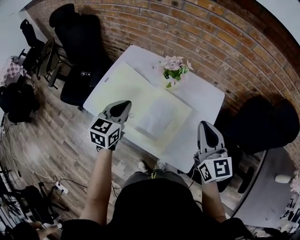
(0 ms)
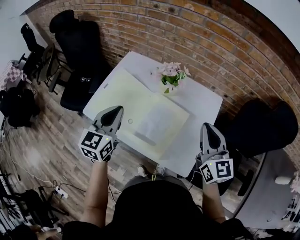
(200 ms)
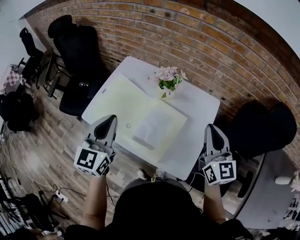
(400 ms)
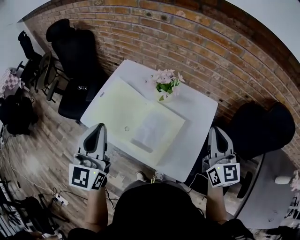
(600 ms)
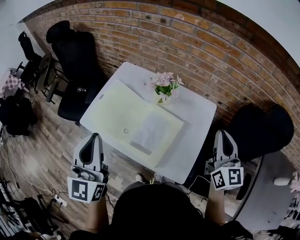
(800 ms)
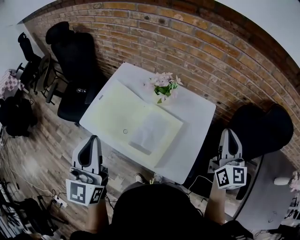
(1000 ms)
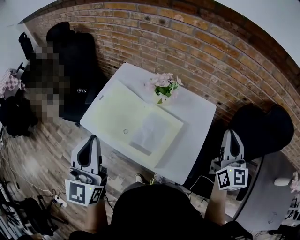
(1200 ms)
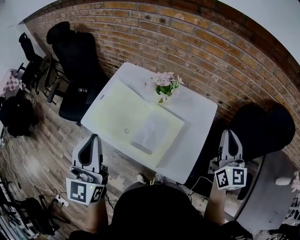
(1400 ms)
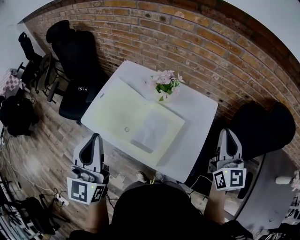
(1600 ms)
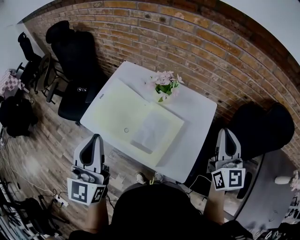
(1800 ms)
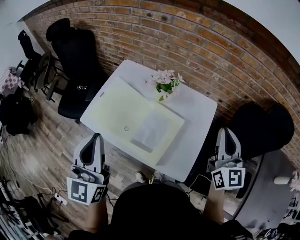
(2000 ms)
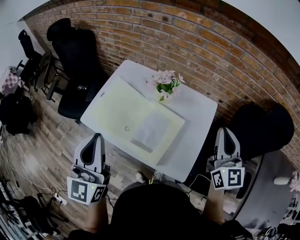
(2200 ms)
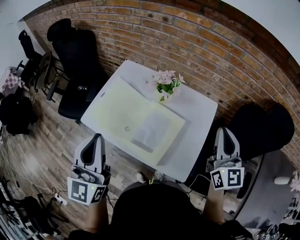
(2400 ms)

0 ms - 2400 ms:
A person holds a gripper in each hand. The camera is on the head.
0 ms - 1200 ms: The right gripper travels to the right and upward by about 15 cm. Meanwhile the left gripper goes some 20 cm upward and backward, and swivels about 30 degrees.
1200 ms - 2400 ms: The right gripper is displaced to the left by approximately 5 cm.

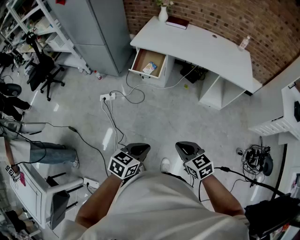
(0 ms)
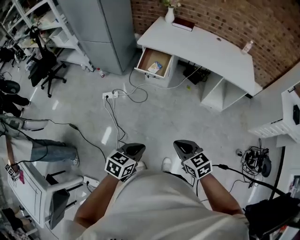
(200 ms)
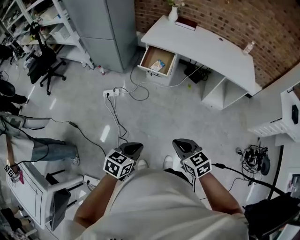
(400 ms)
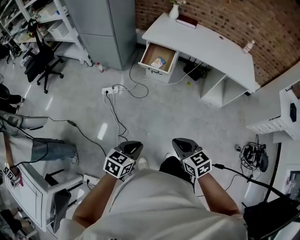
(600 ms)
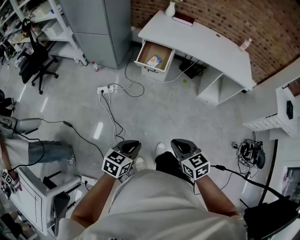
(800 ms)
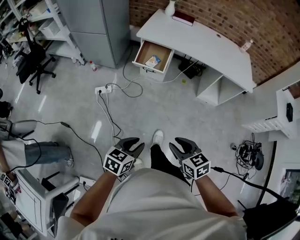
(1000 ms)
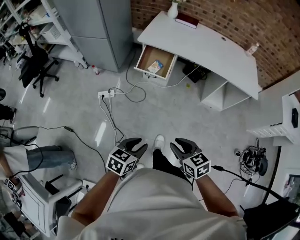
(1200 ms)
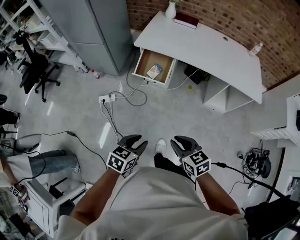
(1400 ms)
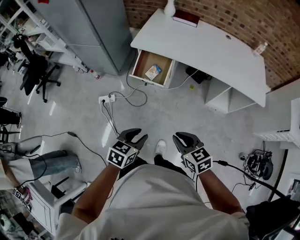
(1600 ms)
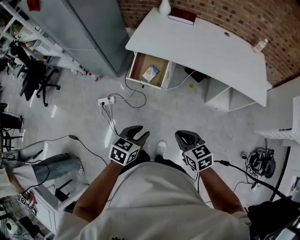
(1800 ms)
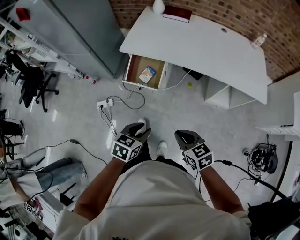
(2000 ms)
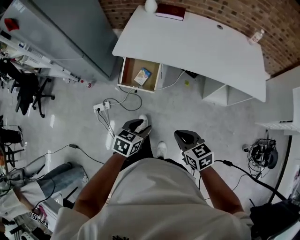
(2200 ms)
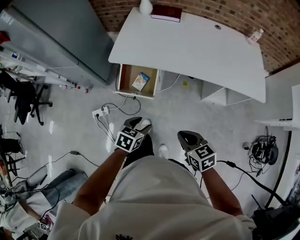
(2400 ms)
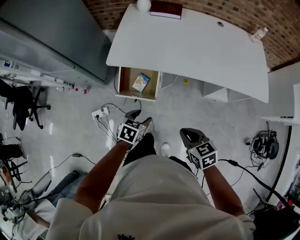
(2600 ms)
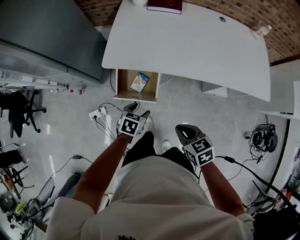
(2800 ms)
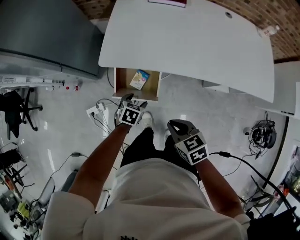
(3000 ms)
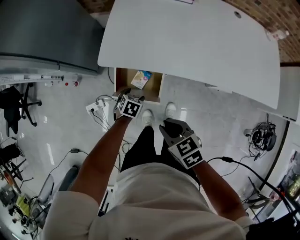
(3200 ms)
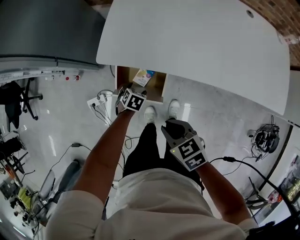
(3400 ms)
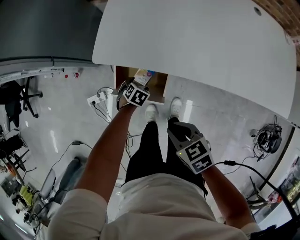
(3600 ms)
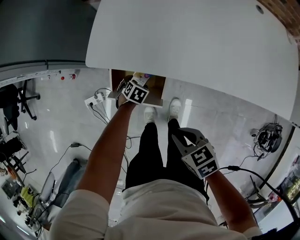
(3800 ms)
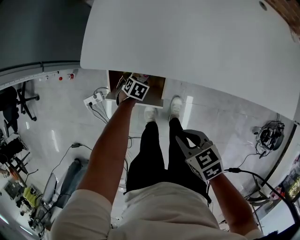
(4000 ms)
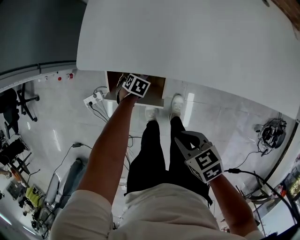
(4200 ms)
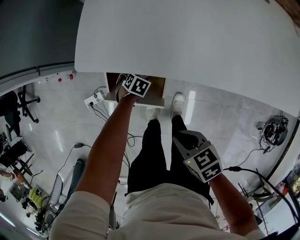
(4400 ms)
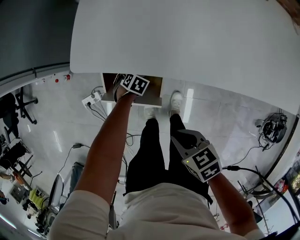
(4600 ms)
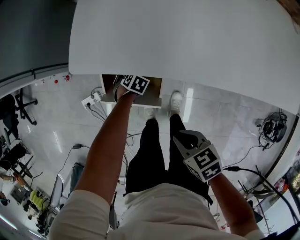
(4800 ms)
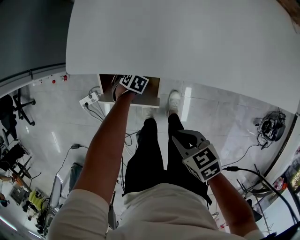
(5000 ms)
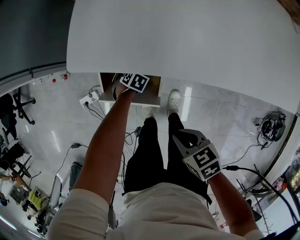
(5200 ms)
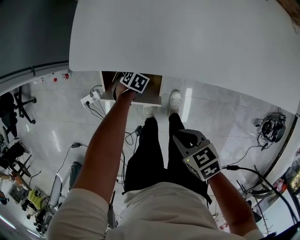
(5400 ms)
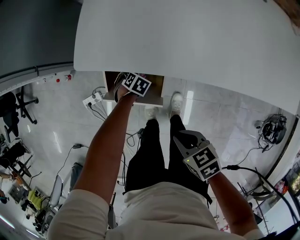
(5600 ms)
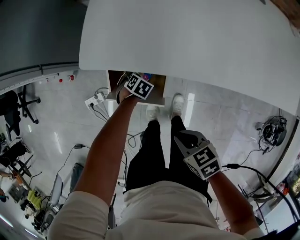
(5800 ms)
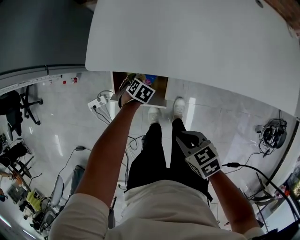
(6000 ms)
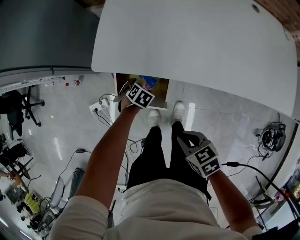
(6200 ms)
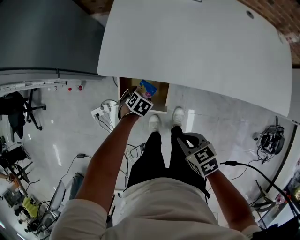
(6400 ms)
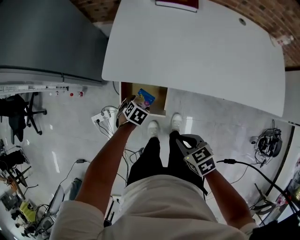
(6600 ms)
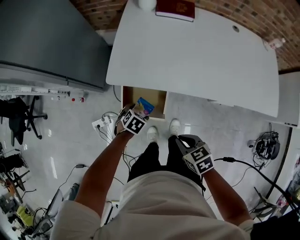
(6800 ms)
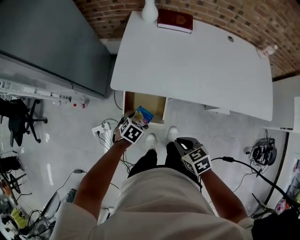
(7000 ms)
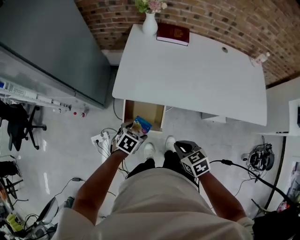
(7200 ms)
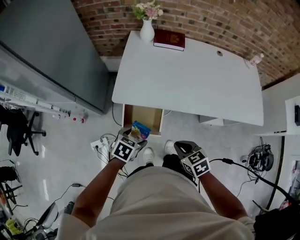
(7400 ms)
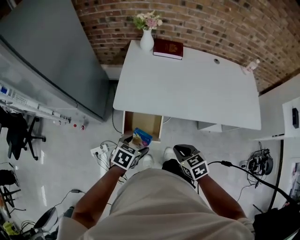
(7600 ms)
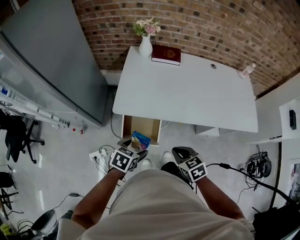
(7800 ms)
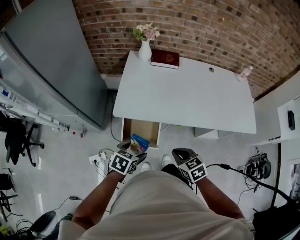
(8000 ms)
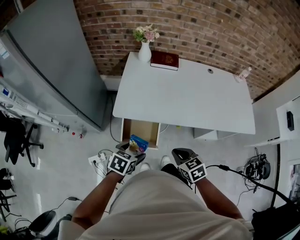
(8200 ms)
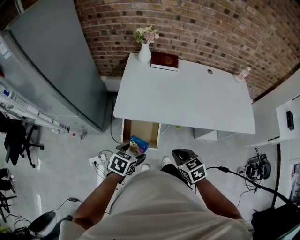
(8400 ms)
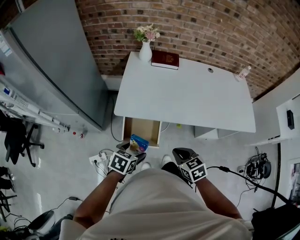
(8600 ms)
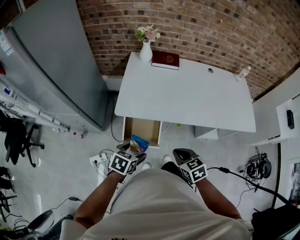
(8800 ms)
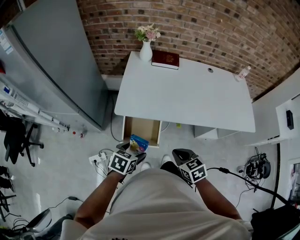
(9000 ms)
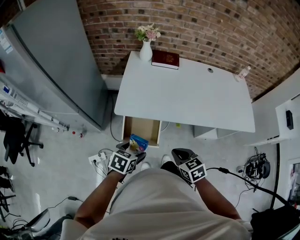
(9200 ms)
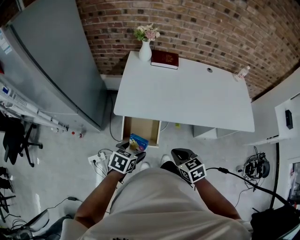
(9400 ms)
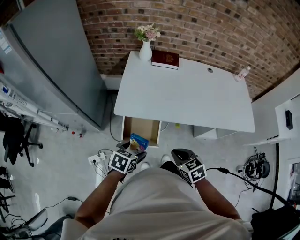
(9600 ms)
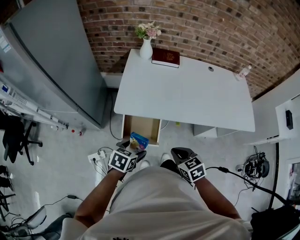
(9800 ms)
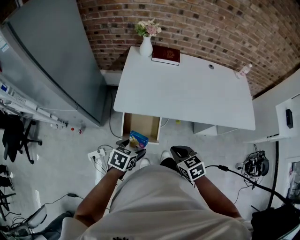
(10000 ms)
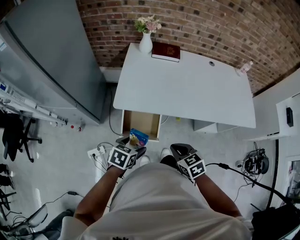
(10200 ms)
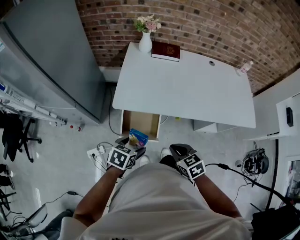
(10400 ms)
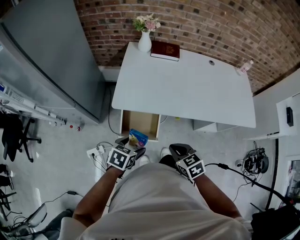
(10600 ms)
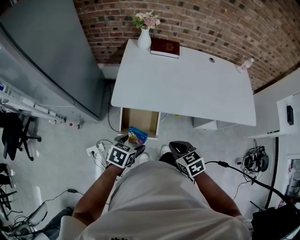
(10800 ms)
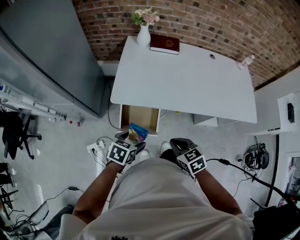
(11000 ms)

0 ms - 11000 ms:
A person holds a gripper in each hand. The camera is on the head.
0 ms - 1600 ms: The two grippers go roughly 25 cm forward.
1600 ms - 3200 ms: The right gripper heads forward, covering roughly 35 cm, while the left gripper is displaced forward and downward by some 60 cm, rotates roughly 30 degrees, and opens its fingers.
3200 ms - 4800 ms: The two grippers go roughly 15 cm downward.
4800 ms - 6200 ms: The left gripper moves upward, roughly 10 cm.
6200 ms - 7800 ms: The right gripper is displaced upward by some 20 cm, and swivels about 20 degrees, while the left gripper travels upward by about 35 cm, and changes its angle by roughly 30 degrees.
7800 ms - 11000 ms: The grippers move only a little.

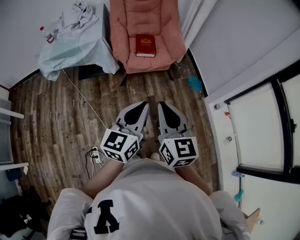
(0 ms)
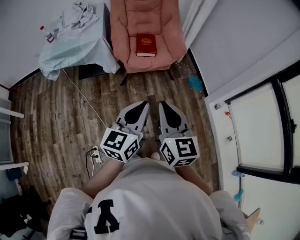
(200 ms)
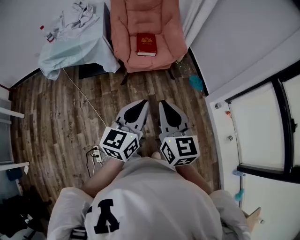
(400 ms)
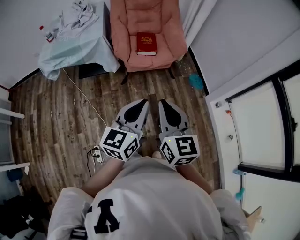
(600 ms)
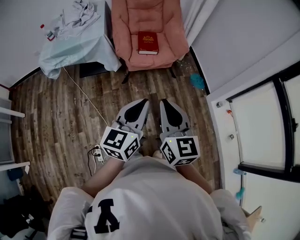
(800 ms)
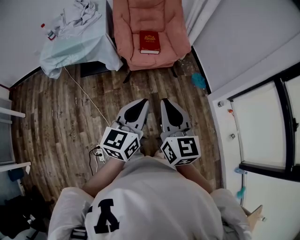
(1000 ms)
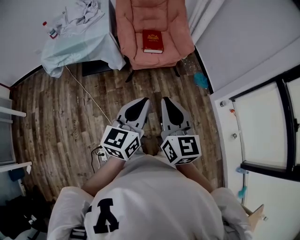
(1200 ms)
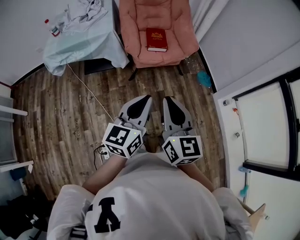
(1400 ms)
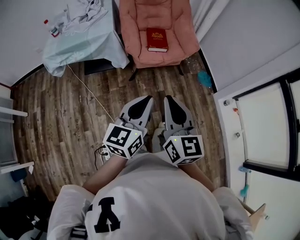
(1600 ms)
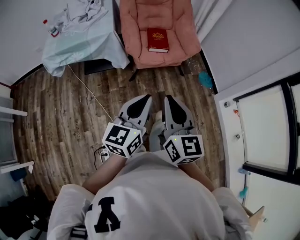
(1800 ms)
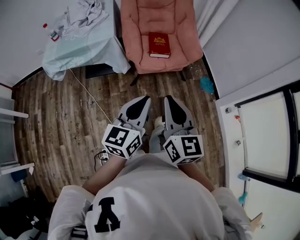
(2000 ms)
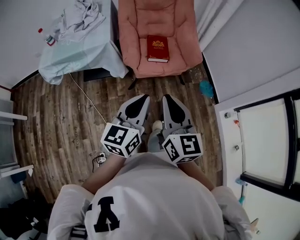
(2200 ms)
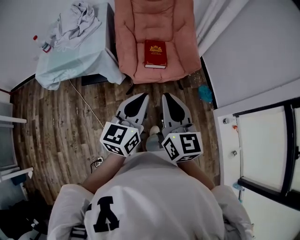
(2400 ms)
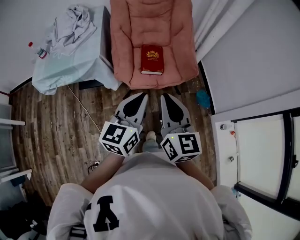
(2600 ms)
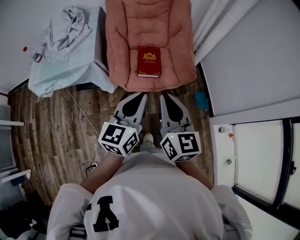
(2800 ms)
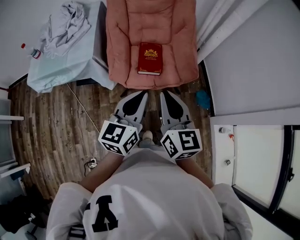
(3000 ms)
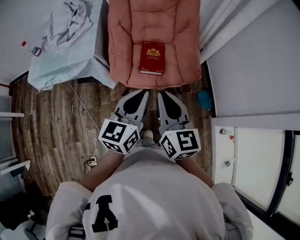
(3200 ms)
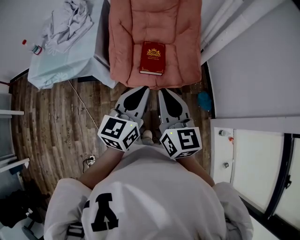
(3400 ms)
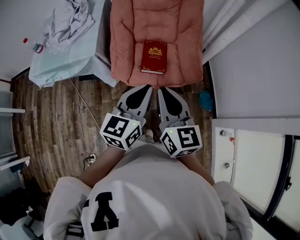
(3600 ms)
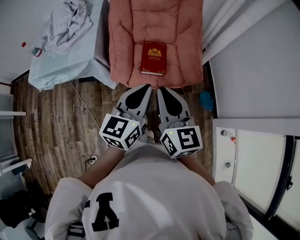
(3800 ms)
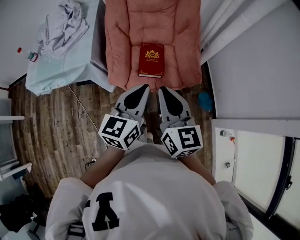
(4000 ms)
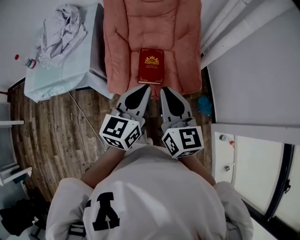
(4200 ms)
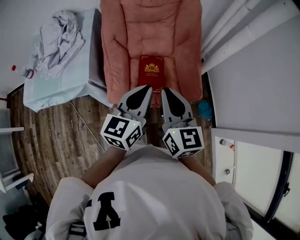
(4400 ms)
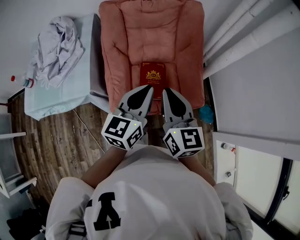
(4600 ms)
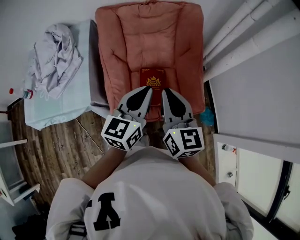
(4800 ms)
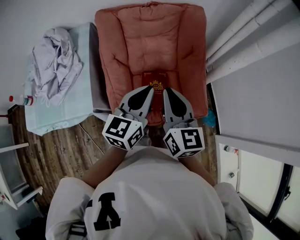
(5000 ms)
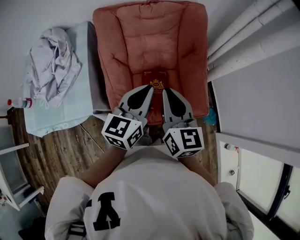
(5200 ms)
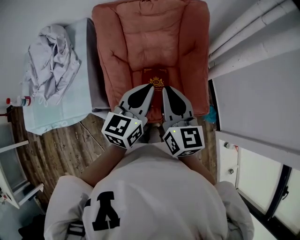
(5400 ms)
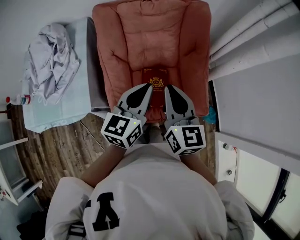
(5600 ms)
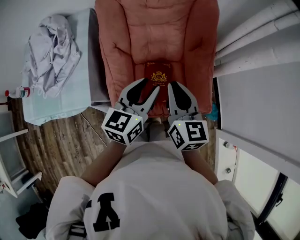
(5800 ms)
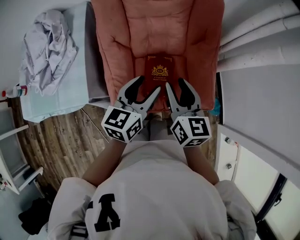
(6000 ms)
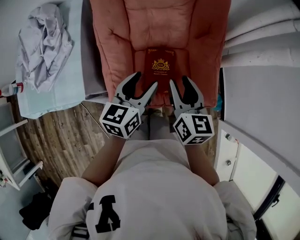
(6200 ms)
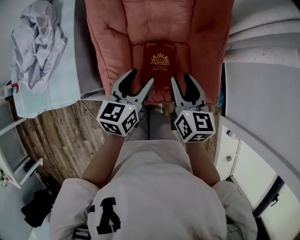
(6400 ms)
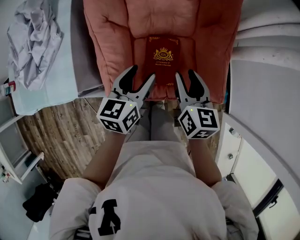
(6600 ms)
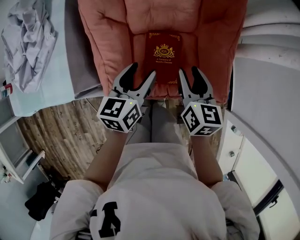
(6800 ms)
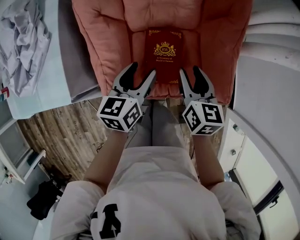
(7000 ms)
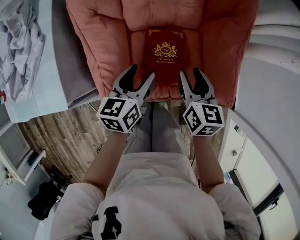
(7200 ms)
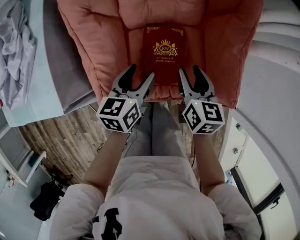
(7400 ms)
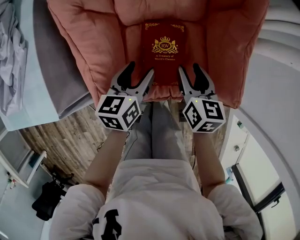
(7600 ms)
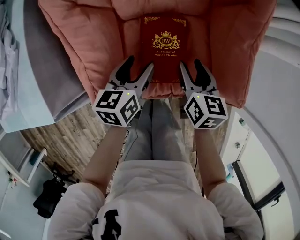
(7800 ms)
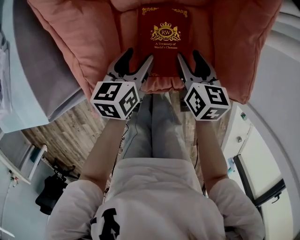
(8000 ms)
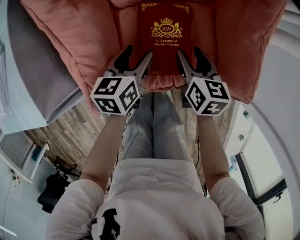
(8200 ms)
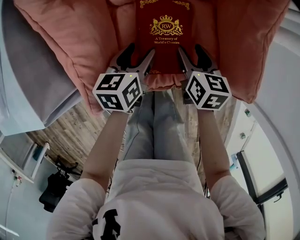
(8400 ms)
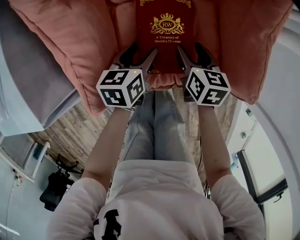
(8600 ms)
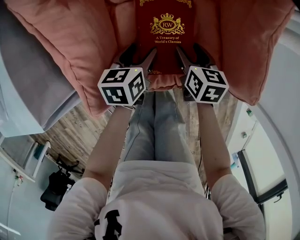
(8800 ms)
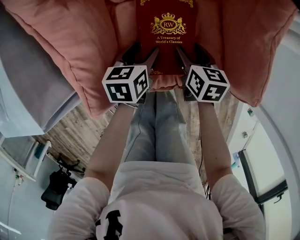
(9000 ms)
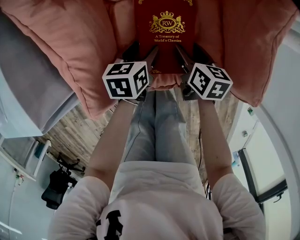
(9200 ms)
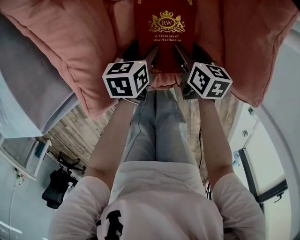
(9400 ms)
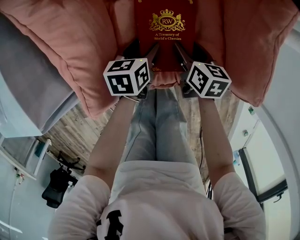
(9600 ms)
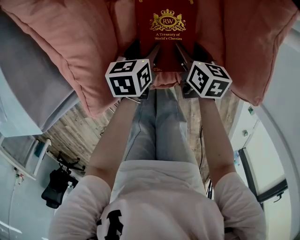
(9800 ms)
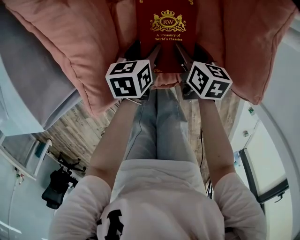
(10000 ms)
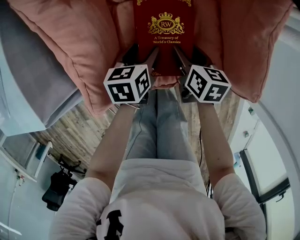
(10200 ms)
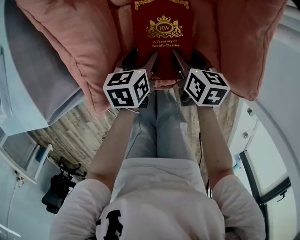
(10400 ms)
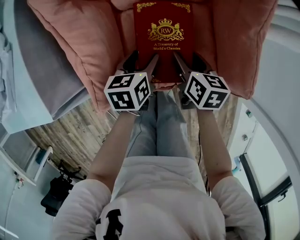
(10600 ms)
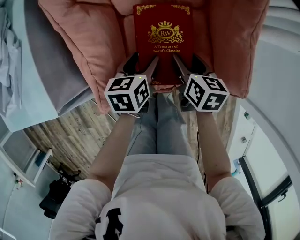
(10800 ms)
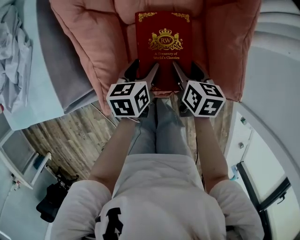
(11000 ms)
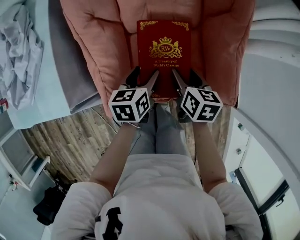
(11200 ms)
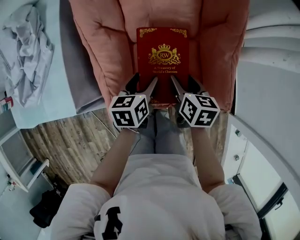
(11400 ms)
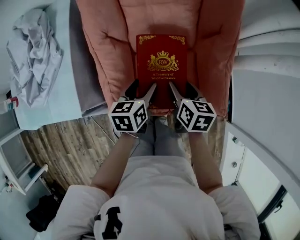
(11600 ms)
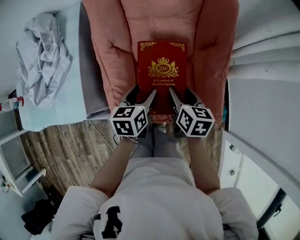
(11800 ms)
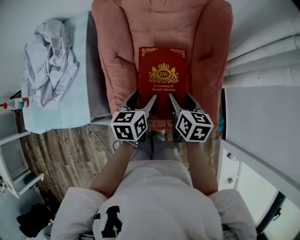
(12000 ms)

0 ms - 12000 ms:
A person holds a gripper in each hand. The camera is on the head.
0 ms - 1600 ms: Both grippers move to the left, about 10 cm.
1600 ms - 3000 ms: Both grippers move forward, about 30 cm.
3000 ms - 4400 ms: The two grippers go roughly 15 cm forward.
4400 ms - 6000 ms: Both grippers travel together forward and downward, some 20 cm. The right gripper opens its fingers, while the left gripper opens.
6000 ms - 7600 ms: Both grippers travel together downward, about 25 cm. The left gripper changes its angle by about 20 degrees, while the right gripper swivels roughly 20 degrees.
7600 ms - 9000 ms: The grippers both shift downward by about 15 cm.
9000 ms - 10400 ms: The grippers stay close to where they were, moving slightly.
10400 ms - 12000 ms: The two grippers go roughly 25 cm upward.
